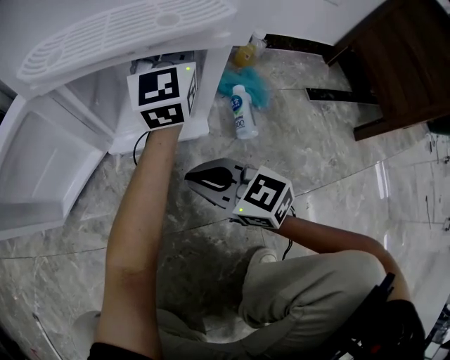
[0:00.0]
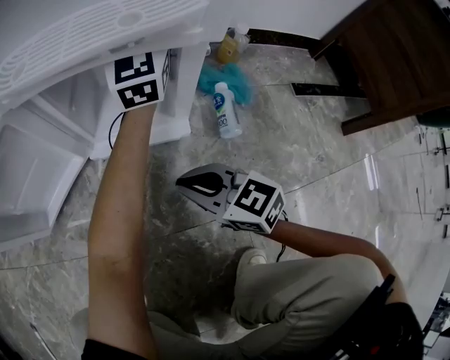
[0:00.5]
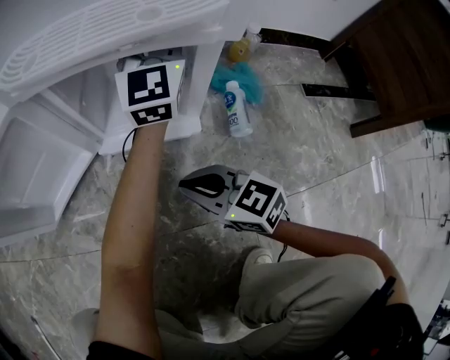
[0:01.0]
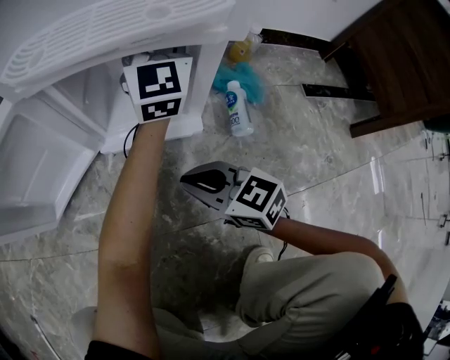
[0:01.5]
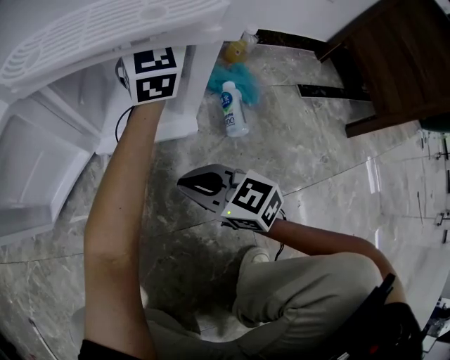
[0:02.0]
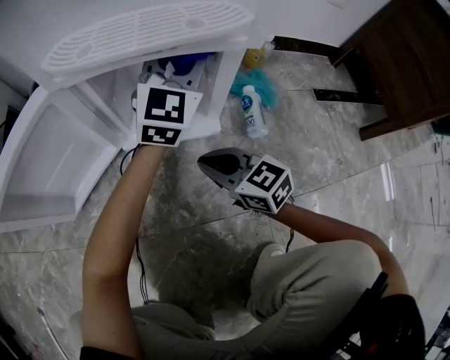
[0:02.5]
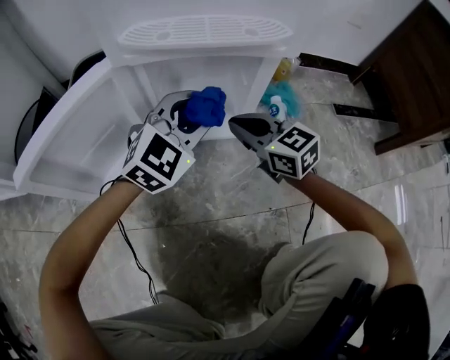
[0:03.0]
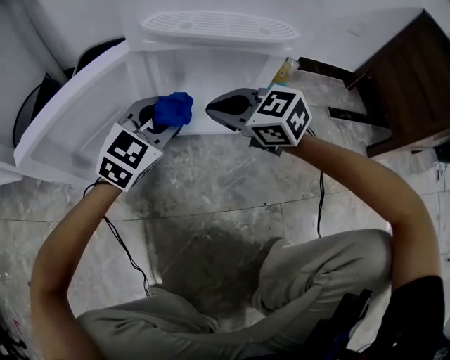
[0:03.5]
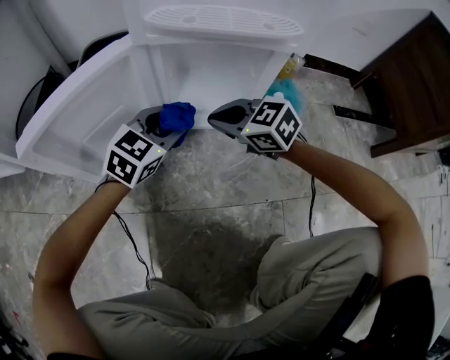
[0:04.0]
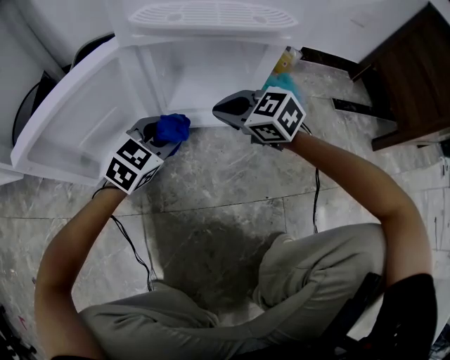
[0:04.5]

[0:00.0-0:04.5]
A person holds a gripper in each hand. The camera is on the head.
0:00.0 to 0:02.0: There are only small adjustments of the grippers.
0:02.0 to 0:04.5: The left gripper shifts about 30 cm backward, to the left and downward, and points its fingers some 40 degrees further downward. The right gripper heads forward, covering roughly 10 cm, and changes its angle by about 20 degrees.

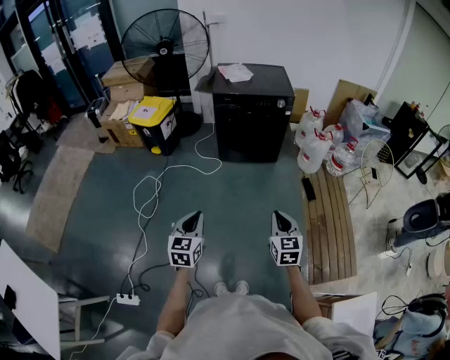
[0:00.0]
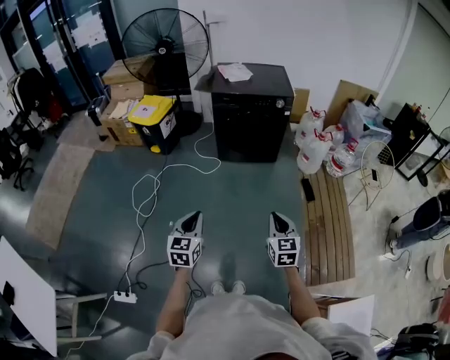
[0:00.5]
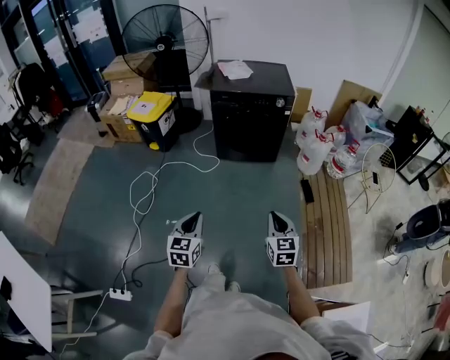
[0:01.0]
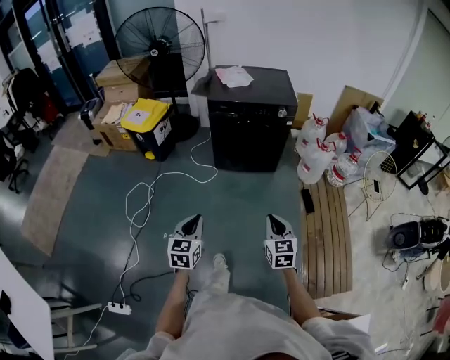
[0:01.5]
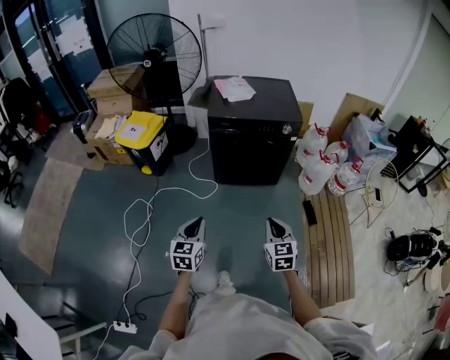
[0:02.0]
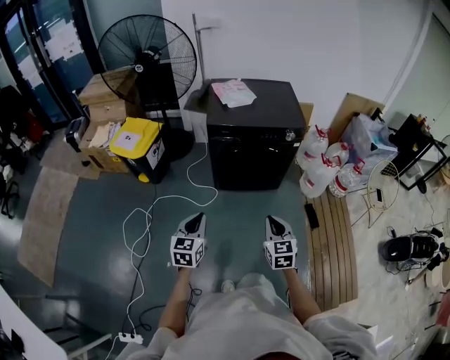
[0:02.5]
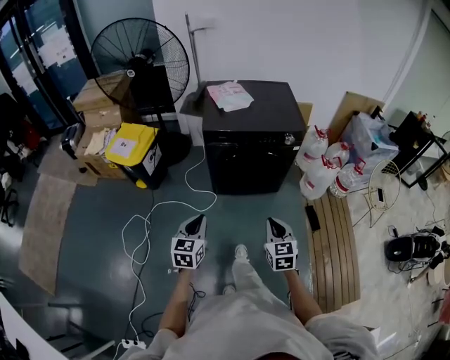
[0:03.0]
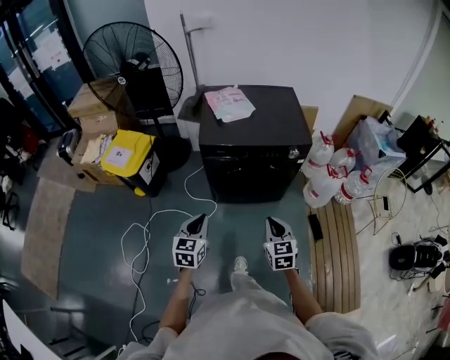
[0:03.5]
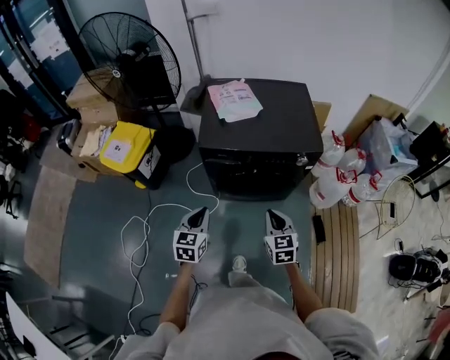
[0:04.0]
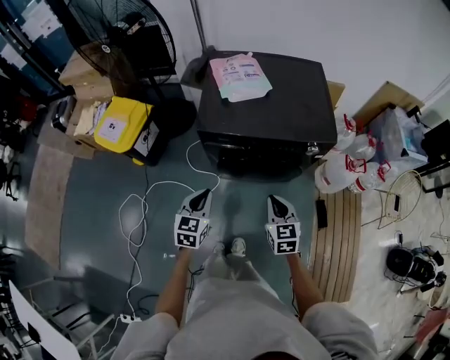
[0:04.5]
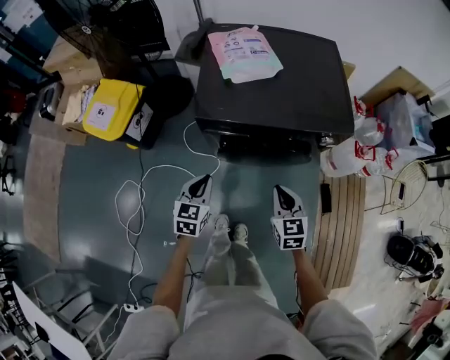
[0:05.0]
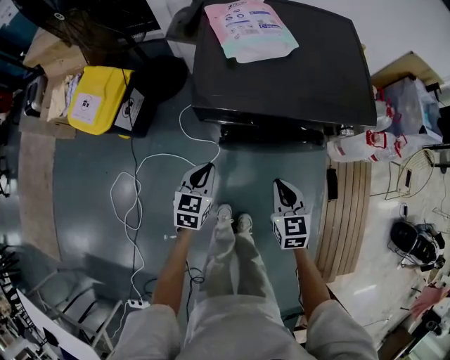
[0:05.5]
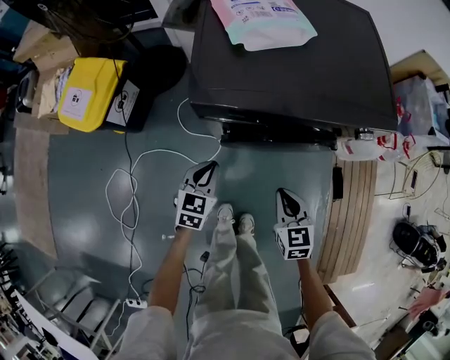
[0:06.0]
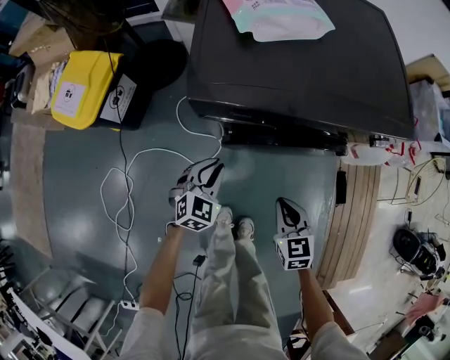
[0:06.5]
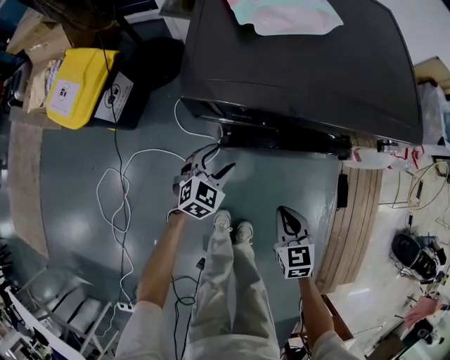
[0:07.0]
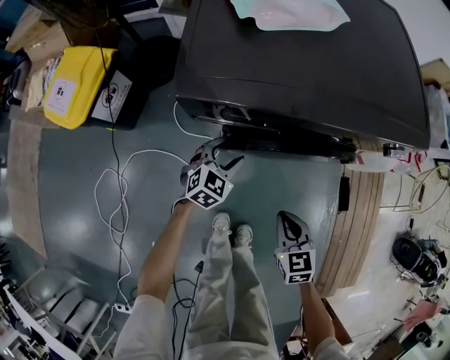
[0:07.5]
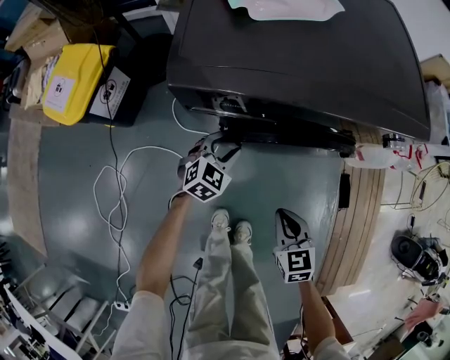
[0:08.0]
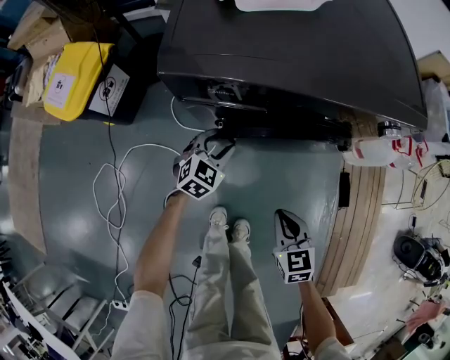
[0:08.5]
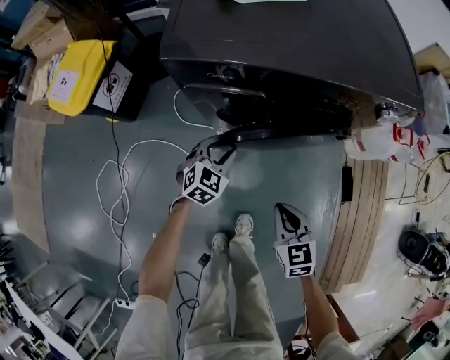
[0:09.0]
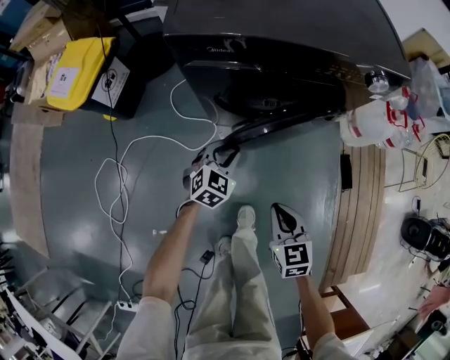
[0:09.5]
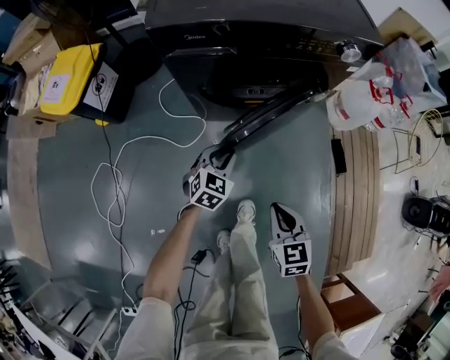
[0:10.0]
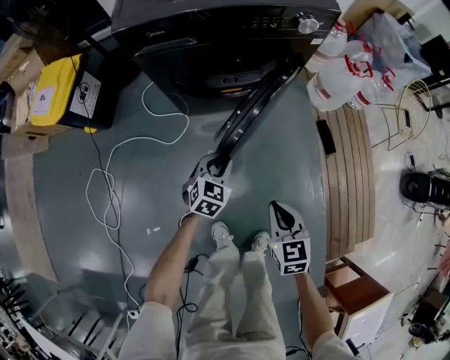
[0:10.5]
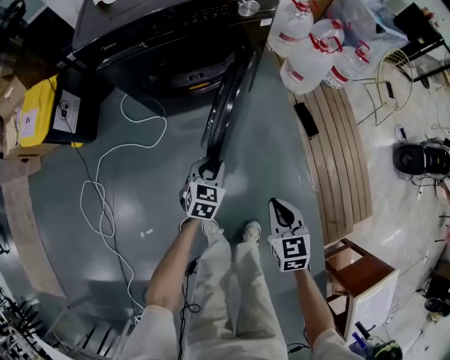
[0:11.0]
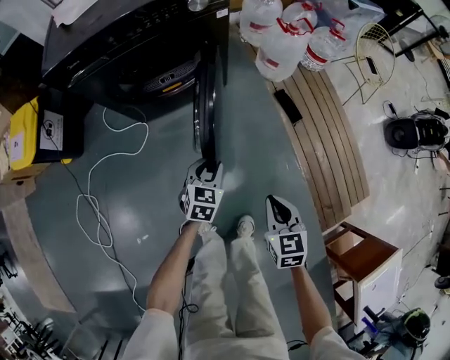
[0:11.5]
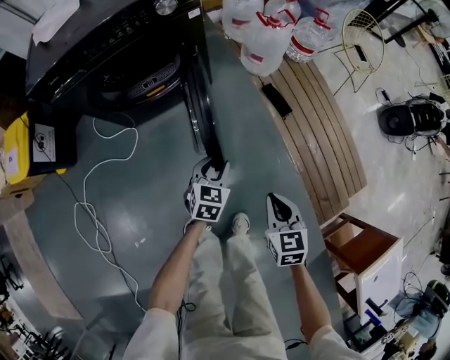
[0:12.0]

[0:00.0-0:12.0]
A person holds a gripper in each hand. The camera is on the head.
0:00.0 to 0:02.0: The two grippers go about 25 cm forward.
0:02.0 to 0:04.0: Both grippers move forward, approximately 40 cm.
0:04.0 to 0:06.0: The grippers both shift downward and forward by about 30 cm.
0:06.0 to 0:08.0: The left gripper goes approximately 15 cm downward, forward and to the right, turns by roughly 30 degrees, and opens. The right gripper shifts about 10 cm downward.
0:08.0 to 0:10.0: The grippers both shift backward by roughly 20 cm.
0:10.0 to 0:12.0: The two grippers go roughly 30 cm to the right. The right gripper changes its angle by roughly 30 degrees.

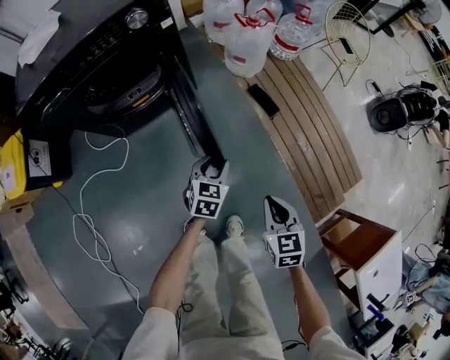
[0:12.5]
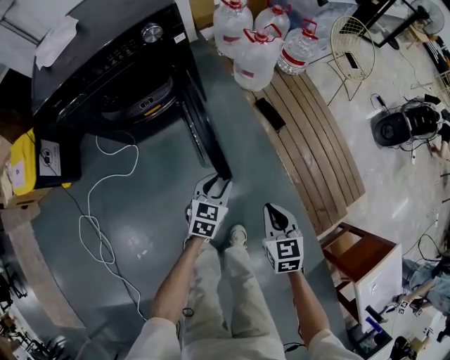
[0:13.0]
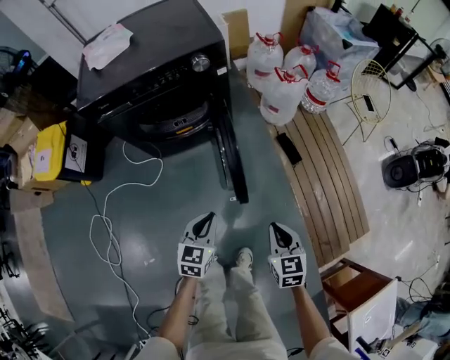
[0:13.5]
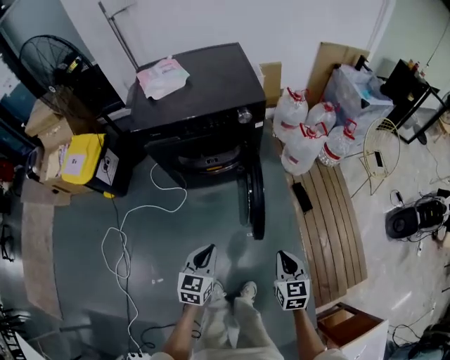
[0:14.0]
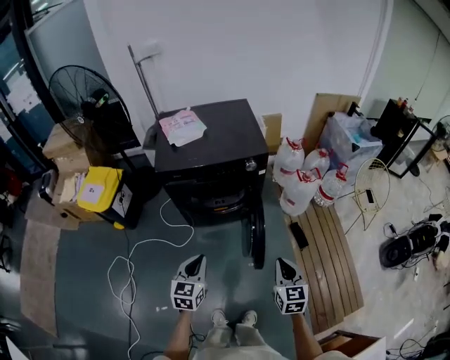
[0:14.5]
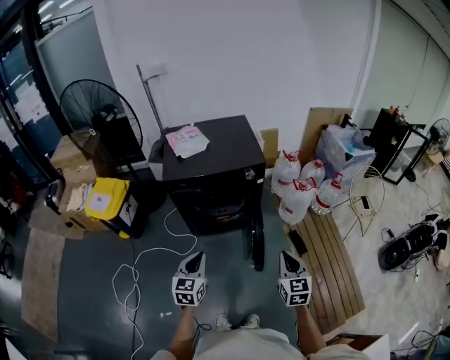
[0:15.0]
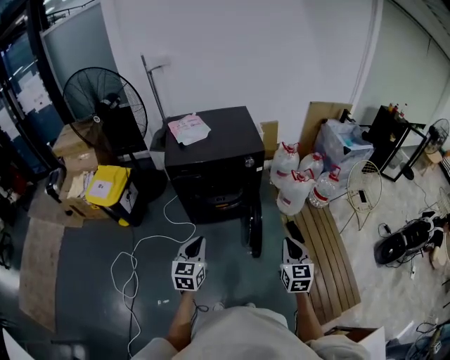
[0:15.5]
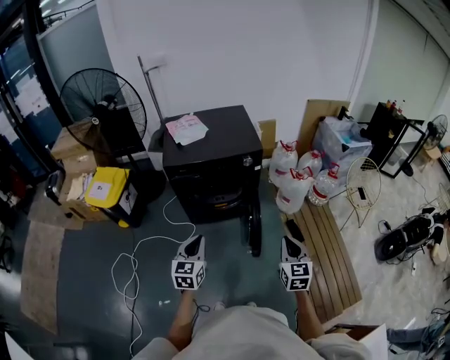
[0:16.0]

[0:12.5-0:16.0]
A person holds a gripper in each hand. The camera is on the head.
0:12.5 to 0:14.5: The two grippers go roughly 40 cm upward and to the left. The left gripper changes its angle by approximately 30 degrees, and closes; the right gripper changes its angle by some 20 degrees.
0:14.5 to 0:16.0: The two grippers go roughly 10 cm upward and backward.

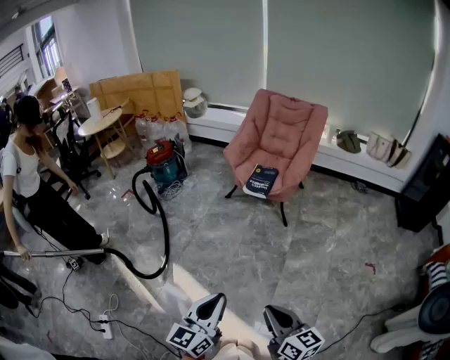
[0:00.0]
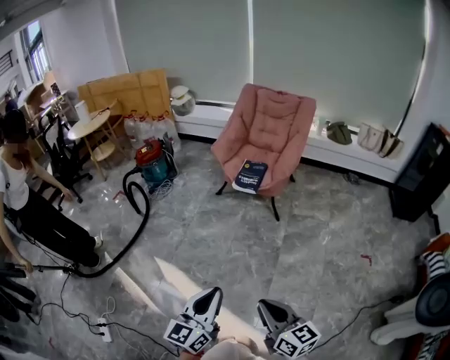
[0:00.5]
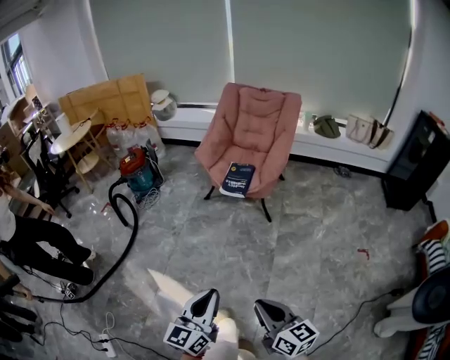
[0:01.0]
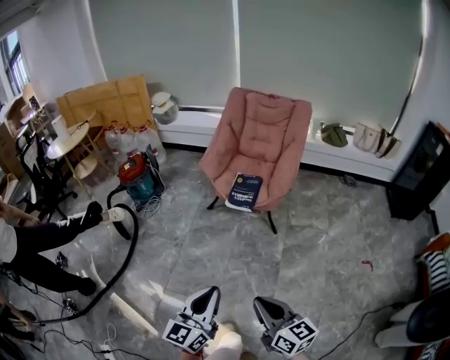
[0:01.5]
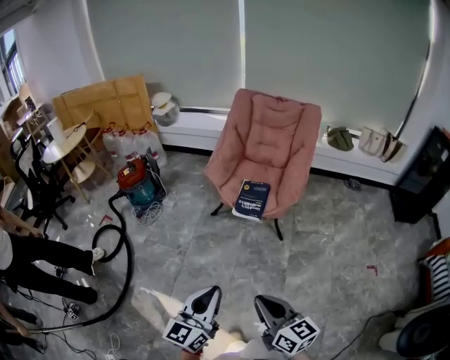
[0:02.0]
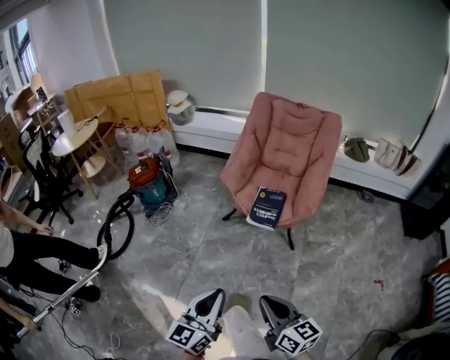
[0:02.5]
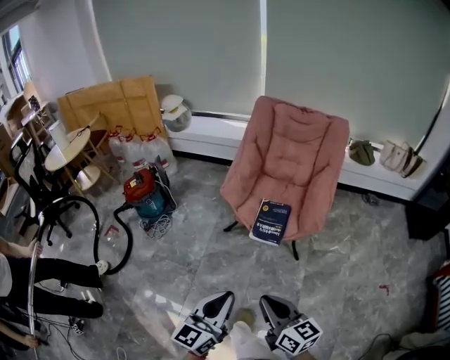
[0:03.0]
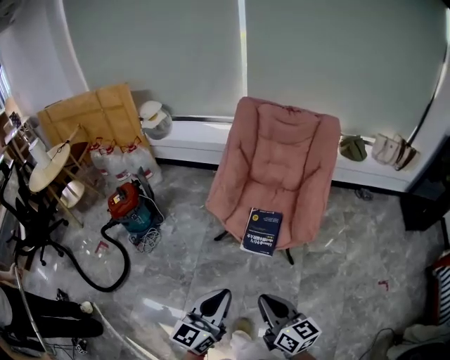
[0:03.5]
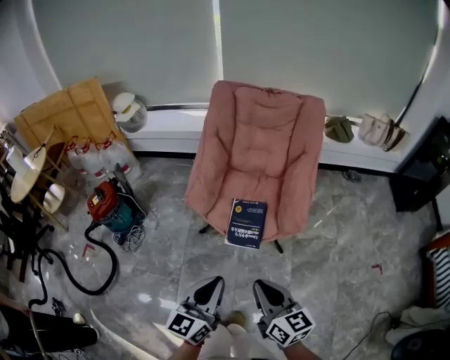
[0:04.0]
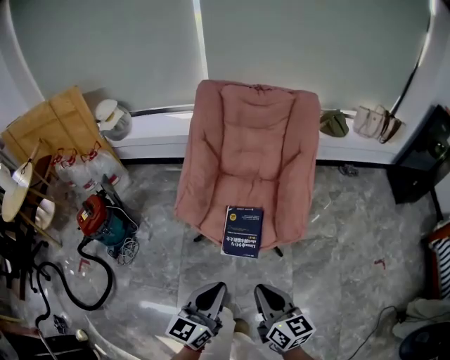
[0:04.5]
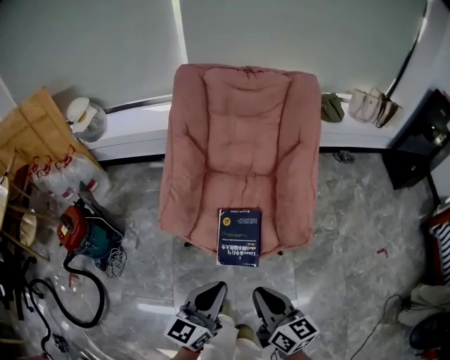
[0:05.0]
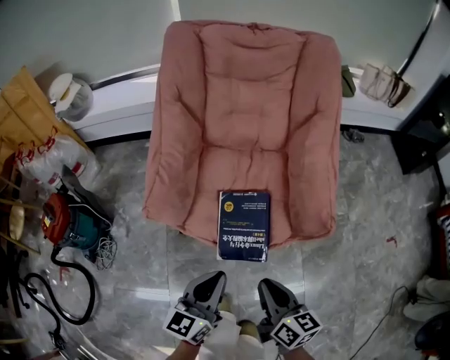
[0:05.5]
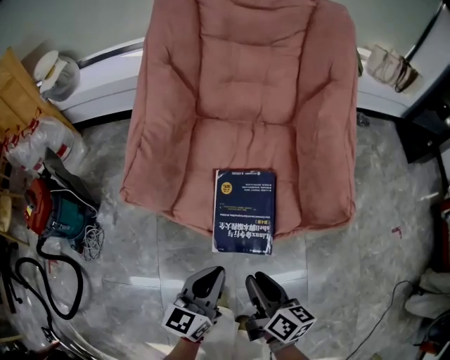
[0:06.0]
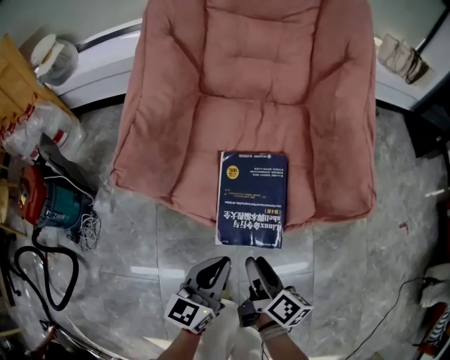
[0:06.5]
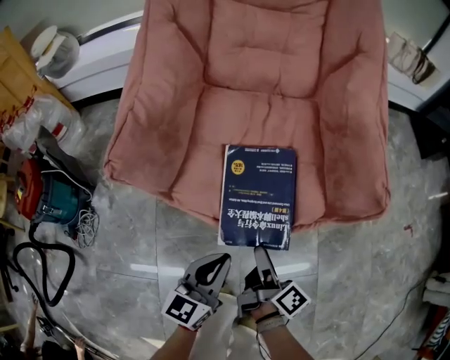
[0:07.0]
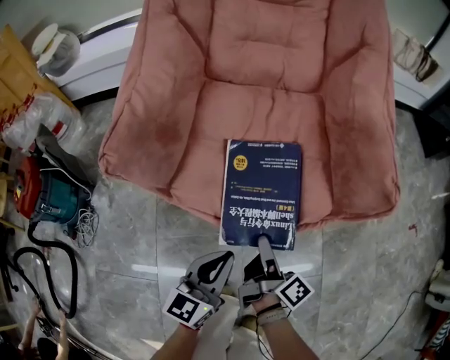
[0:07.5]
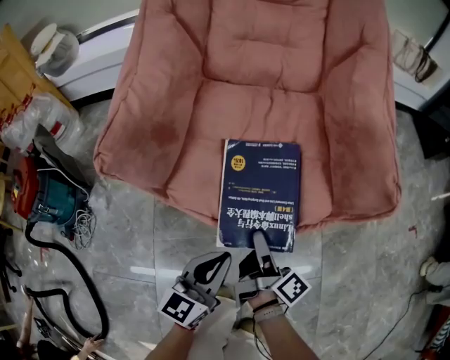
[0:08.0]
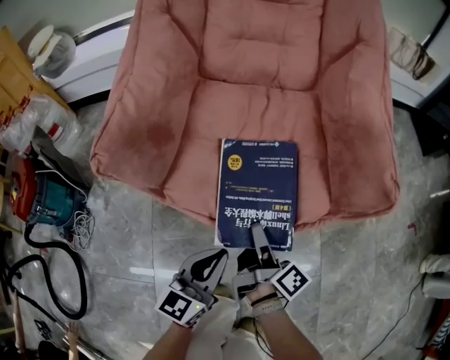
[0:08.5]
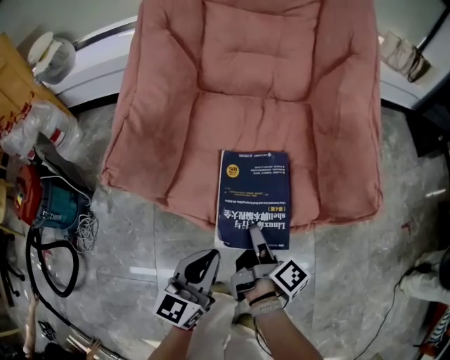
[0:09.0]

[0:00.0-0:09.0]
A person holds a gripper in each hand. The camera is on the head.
0:00.0 to 0:02.0: The two grippers go some 25 cm forward.
0:02.0 to 0:04.5: The two grippers go some 35 cm forward.
0:04.5 to 0:07.0: Both grippers travel together downward, some 40 cm. The right gripper twists roughly 50 degrees clockwise, seen from behind, and opens up.
0:07.0 to 0:09.0: The right gripper changes place by roughly 5 cm.
